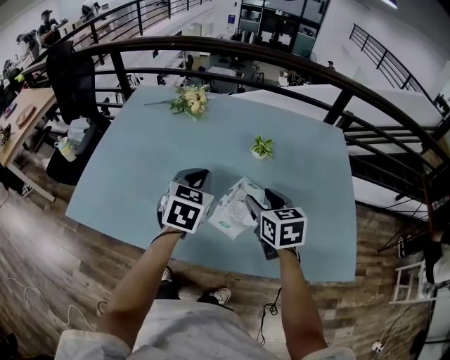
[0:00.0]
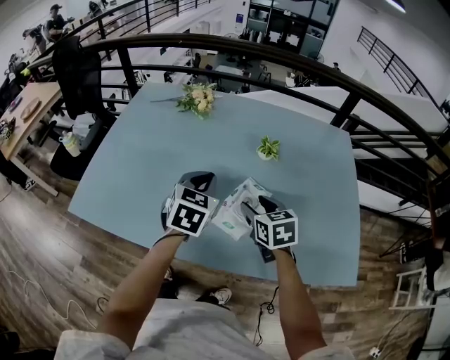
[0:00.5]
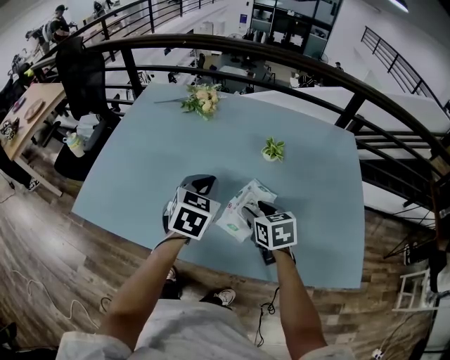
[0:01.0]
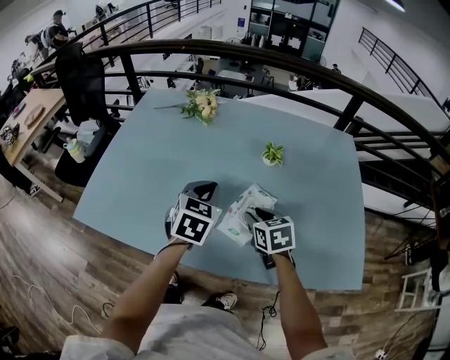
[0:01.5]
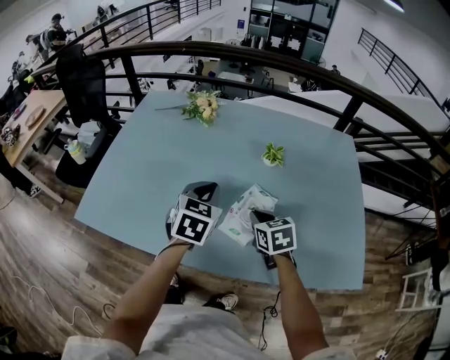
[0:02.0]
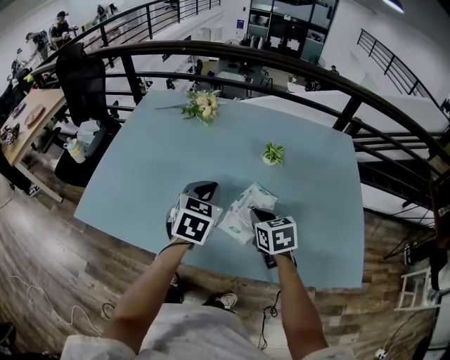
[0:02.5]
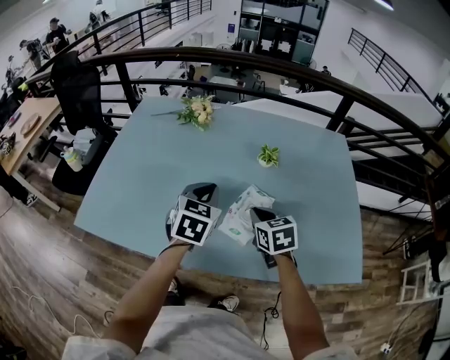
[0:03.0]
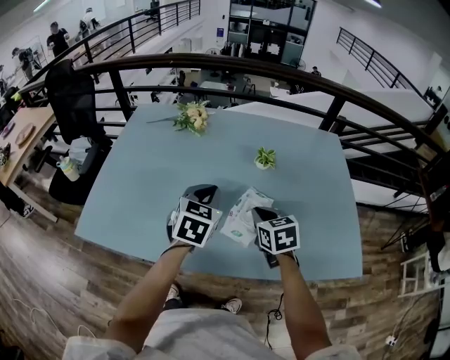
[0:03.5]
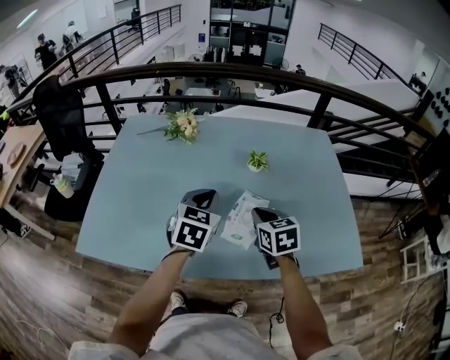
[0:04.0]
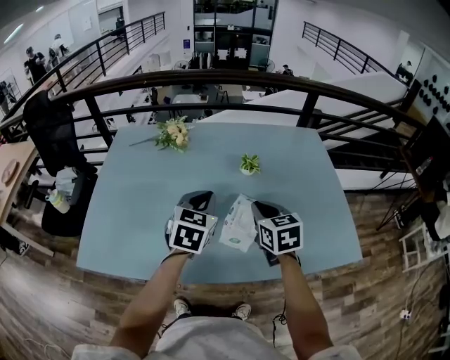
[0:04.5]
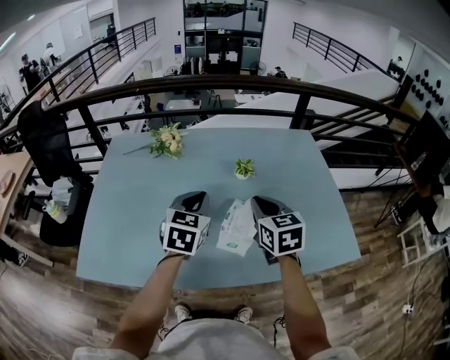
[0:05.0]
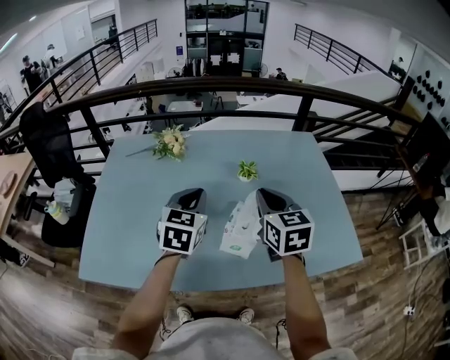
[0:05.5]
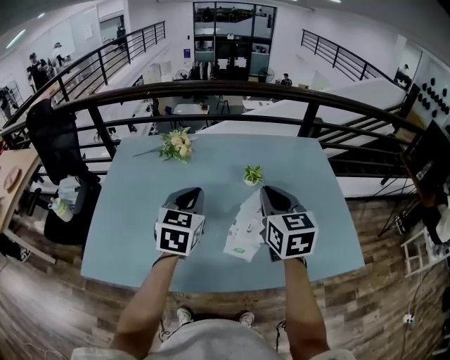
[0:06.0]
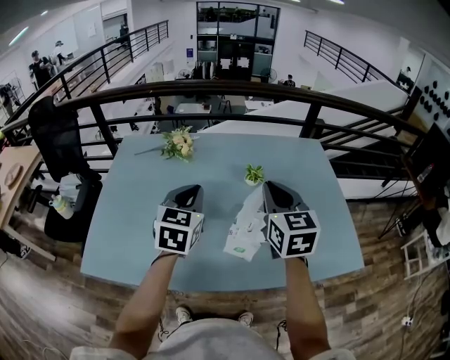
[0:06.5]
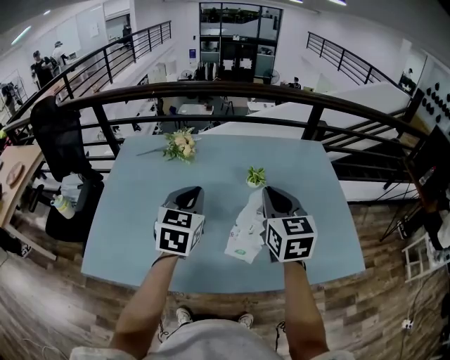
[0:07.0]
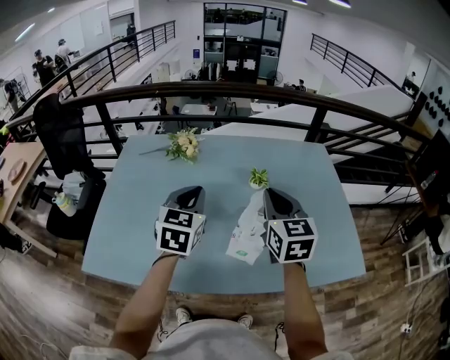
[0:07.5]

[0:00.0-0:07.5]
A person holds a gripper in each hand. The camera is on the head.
0:00.0 to 0:02.0: The right gripper travels downward by some 10 cm, and closes up.
0:02.0 to 0:04.0: The right gripper goes about 5 cm upward.
0:04.0 to 0:05.5: The right gripper travels upward by some 15 cm, while the left gripper shifts by approximately 5 cm.
0:05.5 to 0:07.5: The grippers make only small movements.

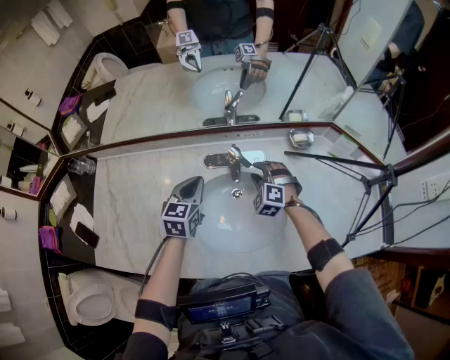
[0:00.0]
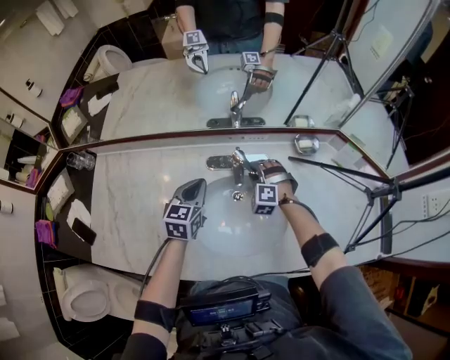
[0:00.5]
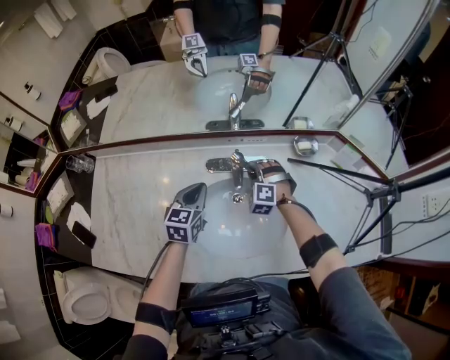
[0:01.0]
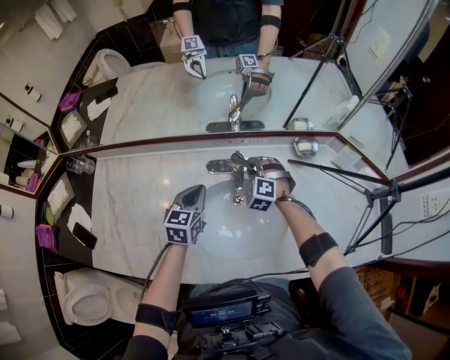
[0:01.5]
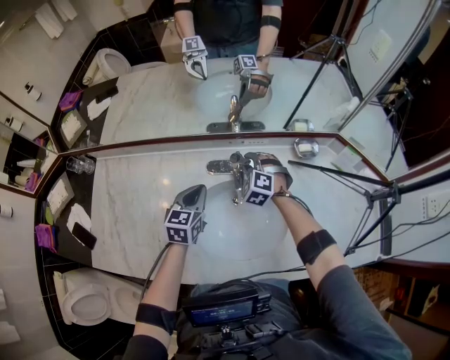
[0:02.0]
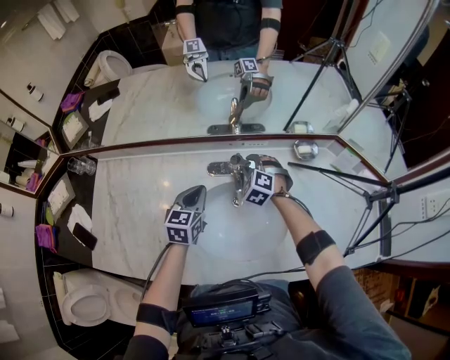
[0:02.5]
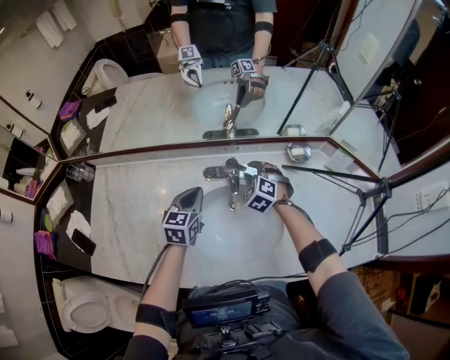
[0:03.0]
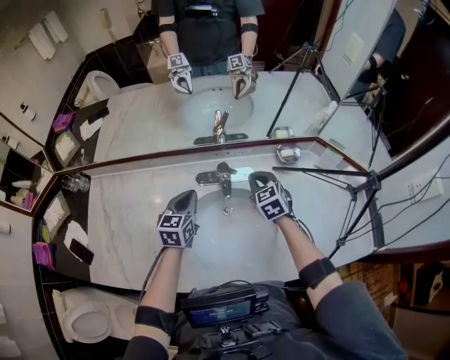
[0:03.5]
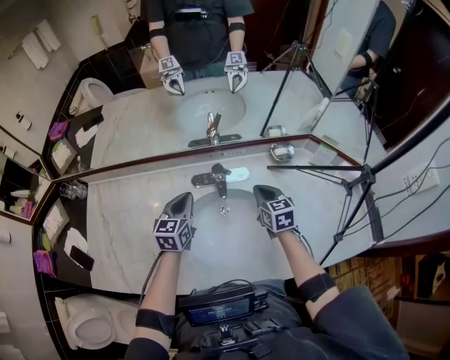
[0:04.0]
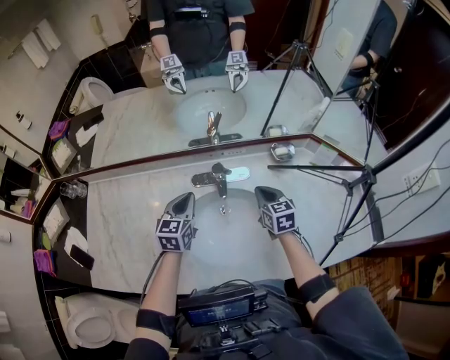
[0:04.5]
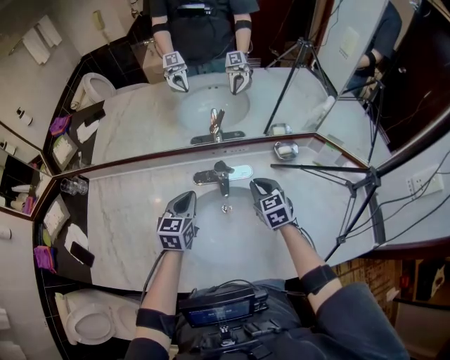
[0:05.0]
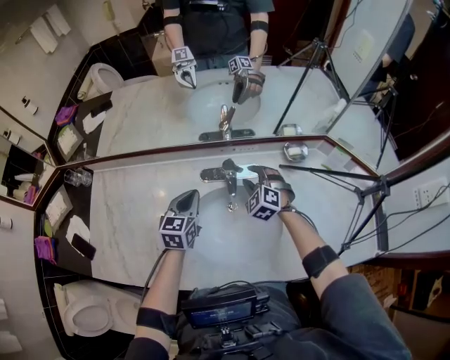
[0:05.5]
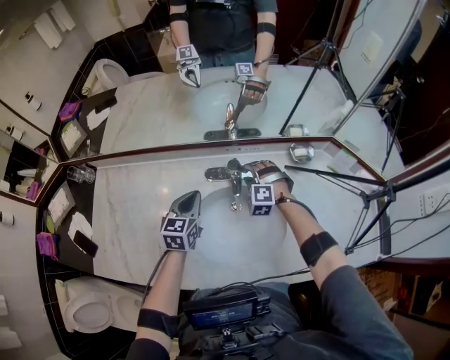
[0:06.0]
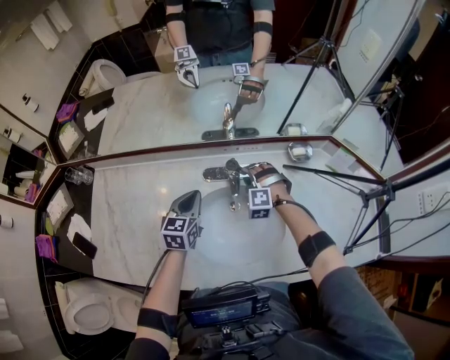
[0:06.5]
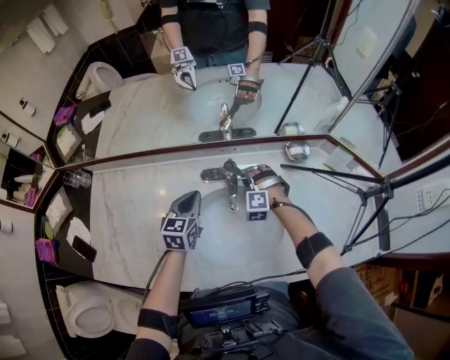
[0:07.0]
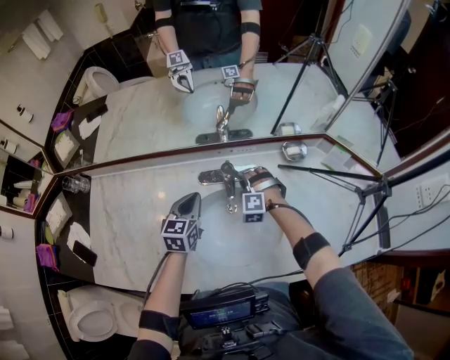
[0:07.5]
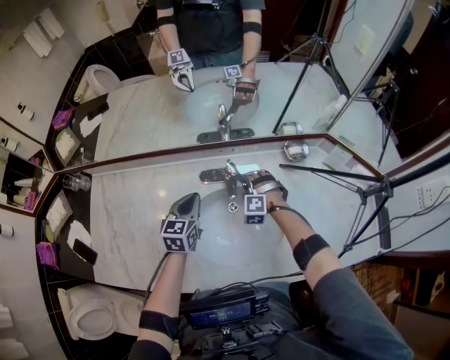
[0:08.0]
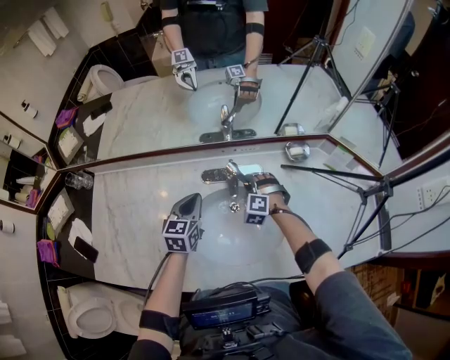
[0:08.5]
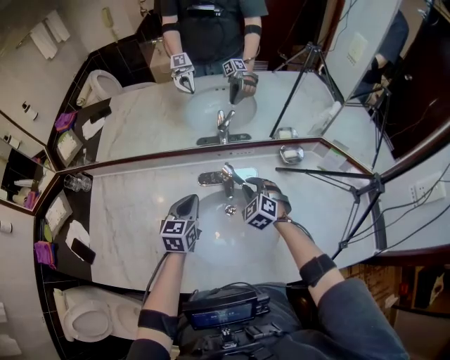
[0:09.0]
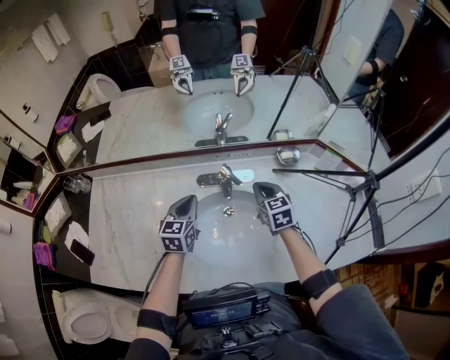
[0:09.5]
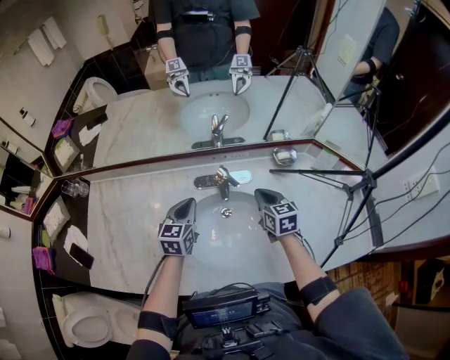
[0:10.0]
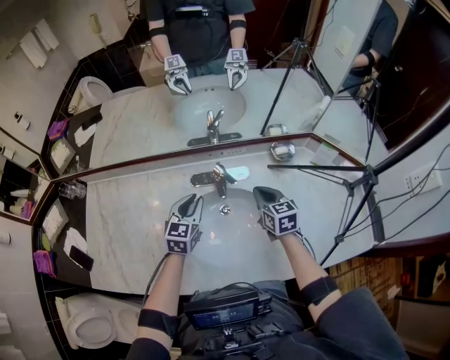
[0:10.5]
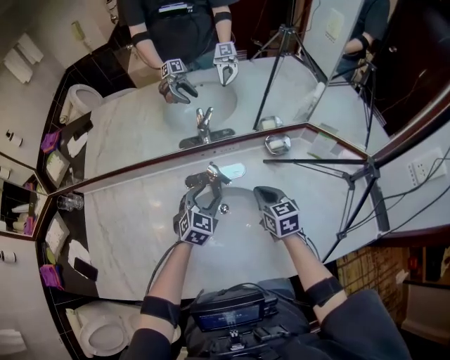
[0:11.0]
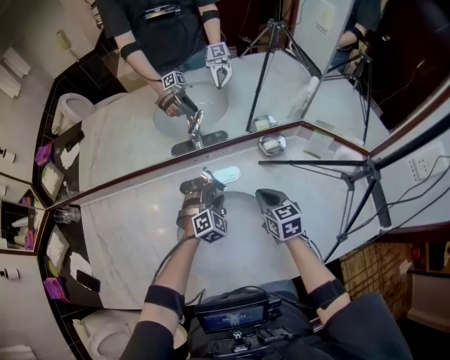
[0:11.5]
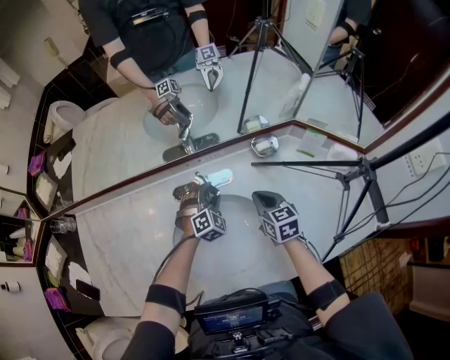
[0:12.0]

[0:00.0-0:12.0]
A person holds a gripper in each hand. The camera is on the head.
0:00.0 to 0:02.0: The right gripper goes roughly 5 cm forward.
0:02.0 to 0:04.0: The right gripper travels to the right, backward and upward by approximately 15 cm, twists about 70 degrees clockwise, seen from behind, and closes its fingers.
0:04.0 to 0:06.0: The right gripper heads to the left, forward and downward, covering some 15 cm, twists some 80 degrees counterclockwise, seen from behind, and opens its fingers.
0:06.0 to 0:08.0: The grippers stay close to where they were, moving slightly.
0:08.0 to 0:10.0: The right gripper heads upward, to the right and backward, covering some 15 cm, rotates around the line of its fingers by about 80 degrees, clockwise from behind, and closes.
0:10.0 to 0:12.0: The right gripper moves to the right, about 5 cm. The left gripper is displaced to the right, downward and forward by approximately 20 cm, rotates around the line of its fingers by some 60 degrees, clockwise from behind, and opens up.

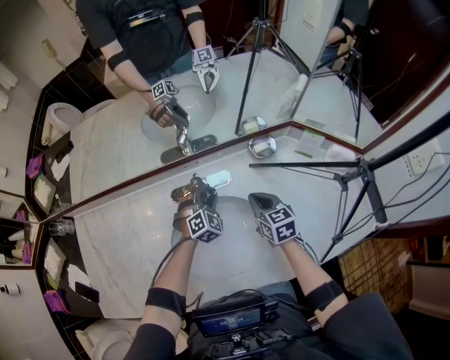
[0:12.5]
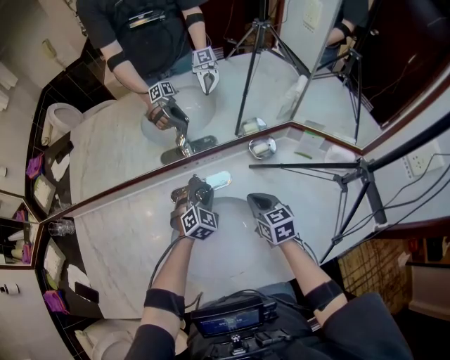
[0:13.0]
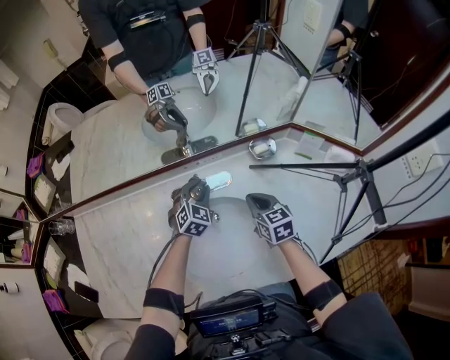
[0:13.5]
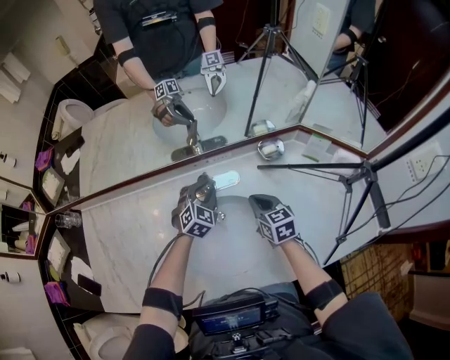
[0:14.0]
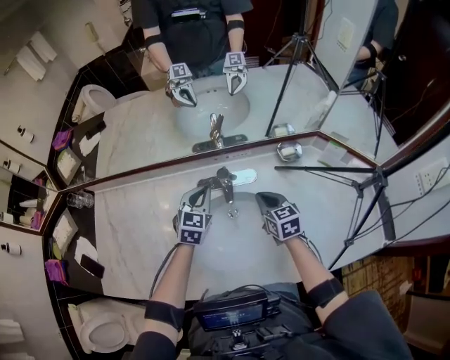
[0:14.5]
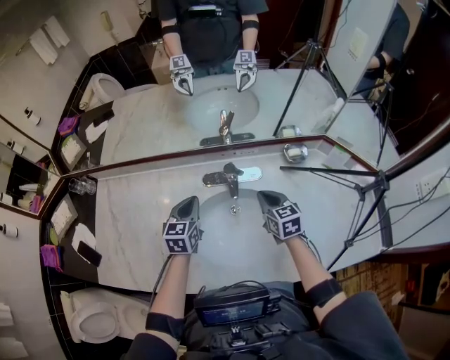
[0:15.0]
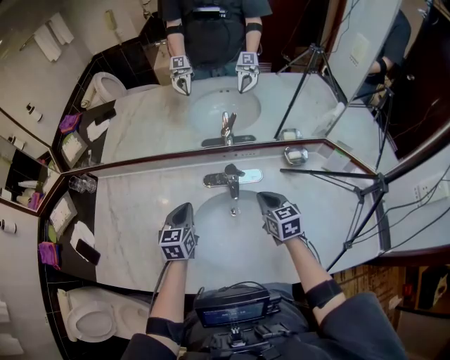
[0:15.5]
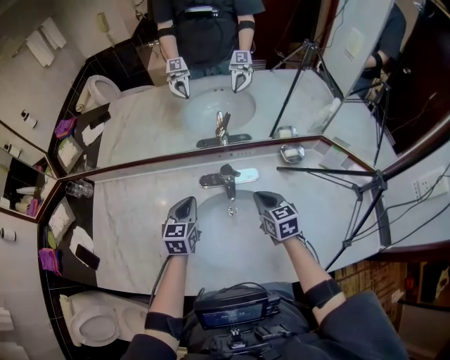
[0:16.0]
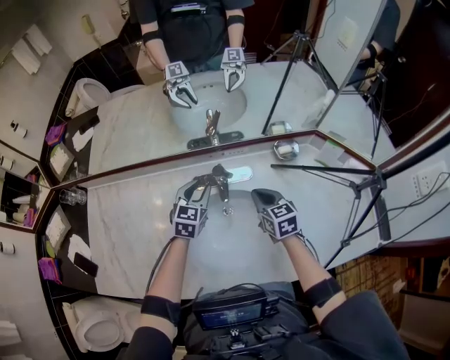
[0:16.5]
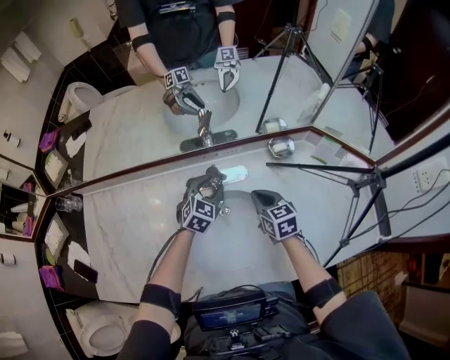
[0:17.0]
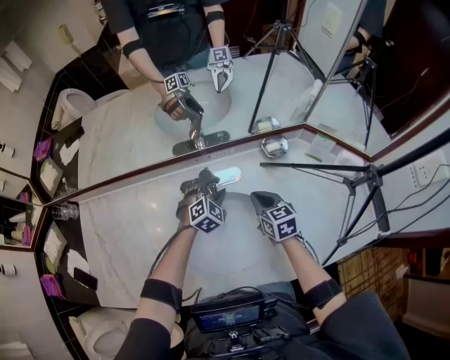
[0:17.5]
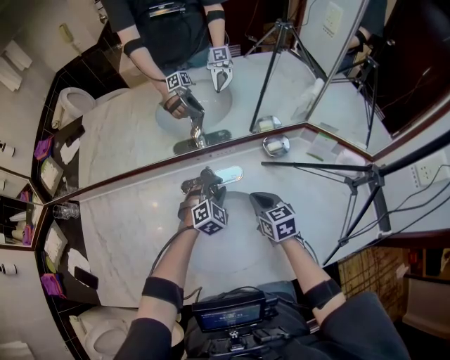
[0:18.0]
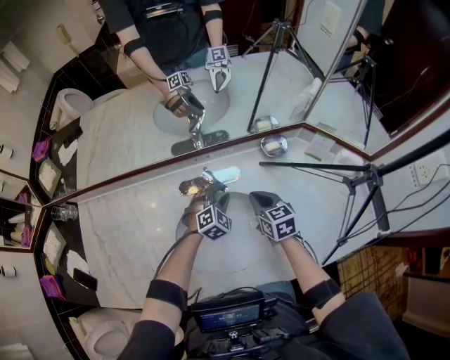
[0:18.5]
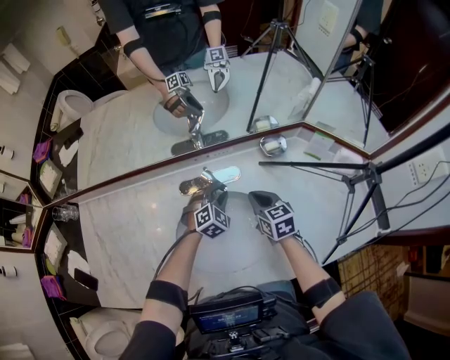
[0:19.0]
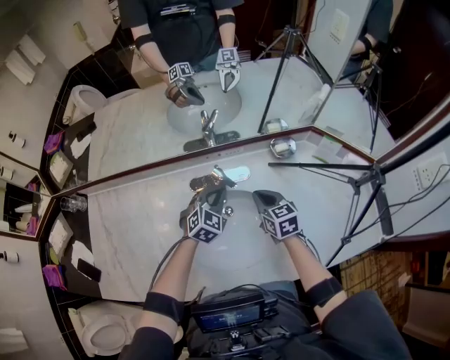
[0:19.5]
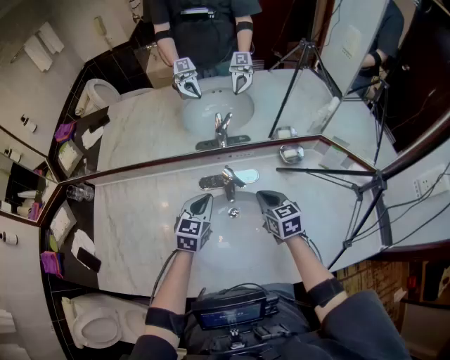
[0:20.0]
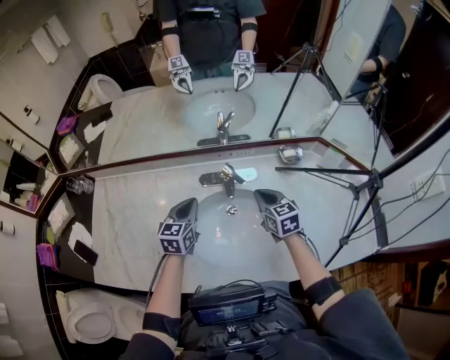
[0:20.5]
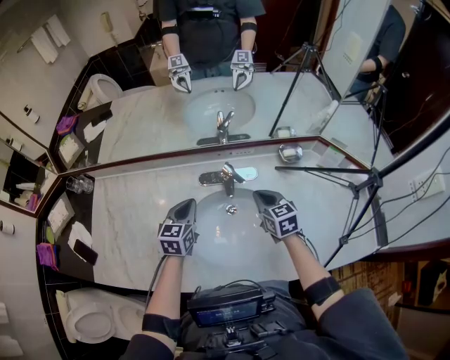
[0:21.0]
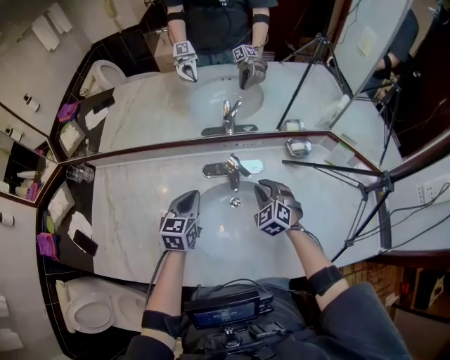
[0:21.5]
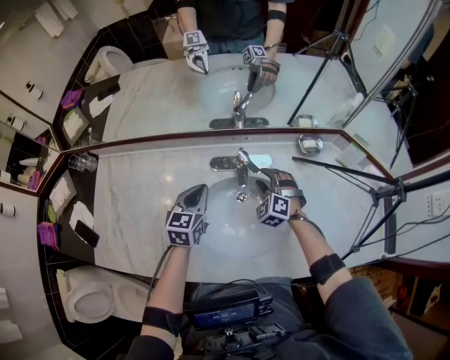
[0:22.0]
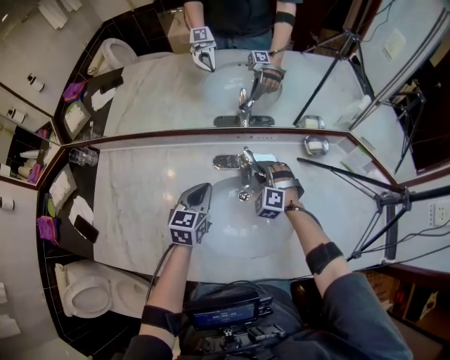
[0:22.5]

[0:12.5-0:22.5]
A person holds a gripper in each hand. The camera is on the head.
0:12.5 to 0:14.5: The right gripper is displaced to the left by some 5 cm; the left gripper shifts some 15 cm to the left and upward, changes its angle by some 40 degrees, and closes its fingers.
0:14.5 to 0:16.5: The left gripper travels to the left and back again, some 10 cm each way, and opens up.
0:16.5 to 0:18.5: The left gripper goes some 15 cm to the right and downward, and changes its angle by approximately 40 degrees.
0:18.5 to 0:20.5: The left gripper moves to the left and upward, roughly 20 cm, rolls counterclockwise, seen from behind, by roughly 60 degrees, and closes up, while the right gripper changes place by roughly 5 cm.
0:20.5 to 0:22.5: The right gripper shifts approximately 15 cm downward, forward and to the left, rotates around the line of its fingers by about 70 degrees, counterclockwise from behind, and opens.
